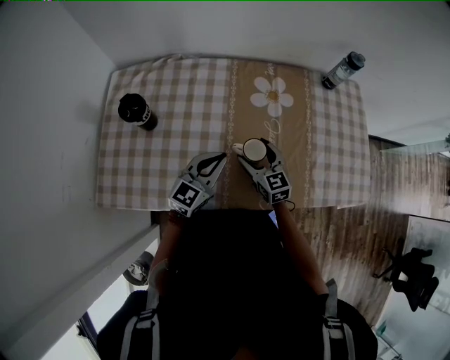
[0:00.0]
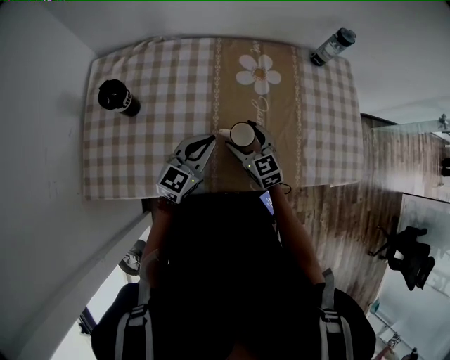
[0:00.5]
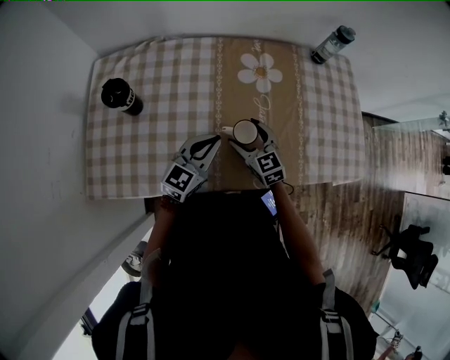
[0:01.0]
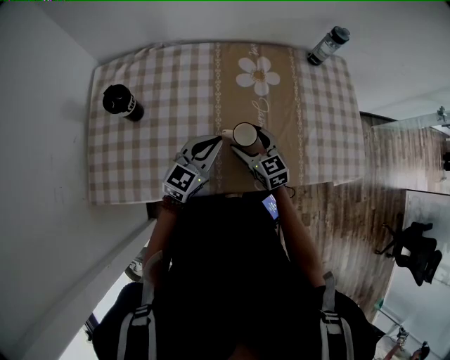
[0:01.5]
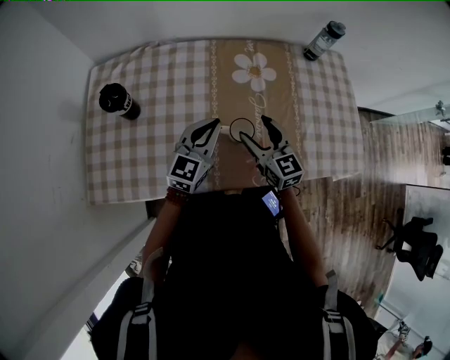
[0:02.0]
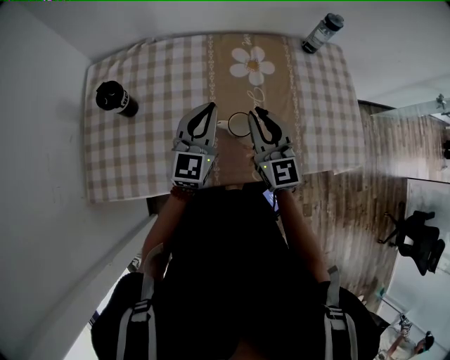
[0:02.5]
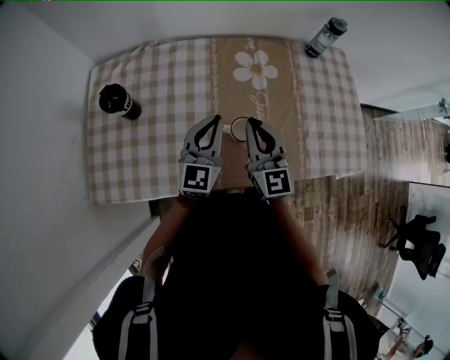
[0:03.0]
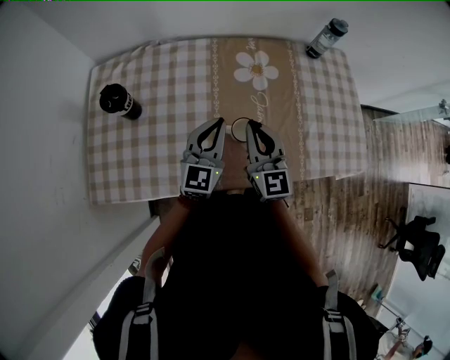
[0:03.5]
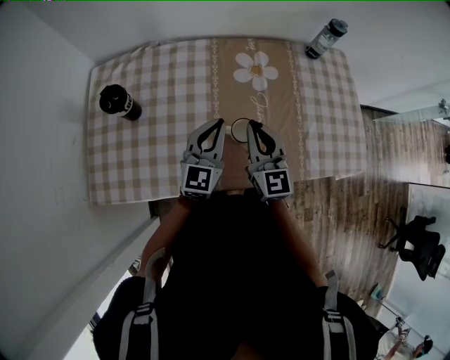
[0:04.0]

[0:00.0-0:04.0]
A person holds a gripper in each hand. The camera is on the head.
0:00.0 to 0:02.0: The right gripper is displaced upward by approximately 5 cm.
0:02.0 to 0:04.0: The right gripper travels upward by approximately 5 cm, and closes.

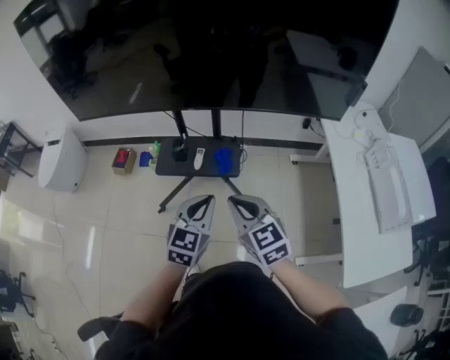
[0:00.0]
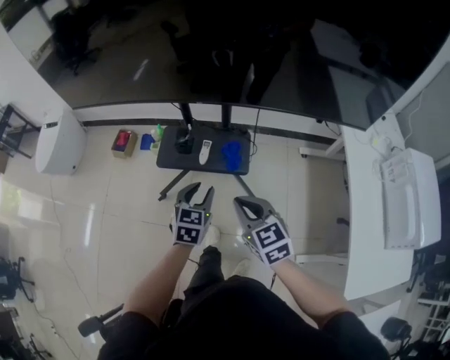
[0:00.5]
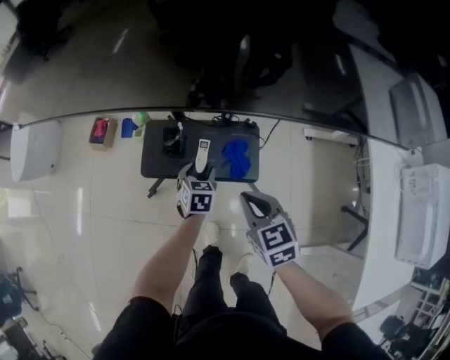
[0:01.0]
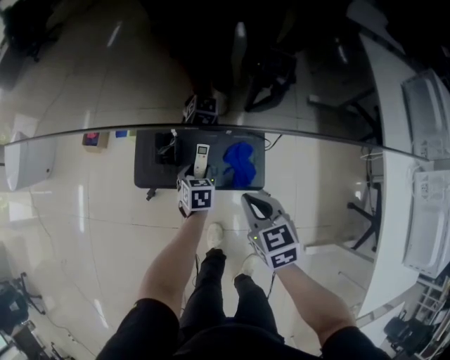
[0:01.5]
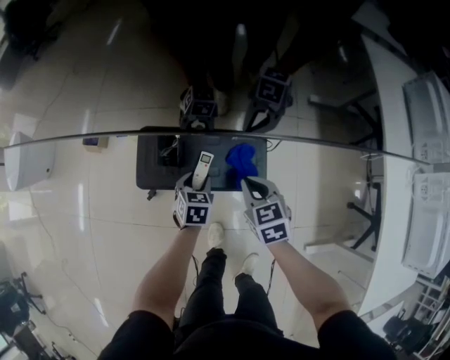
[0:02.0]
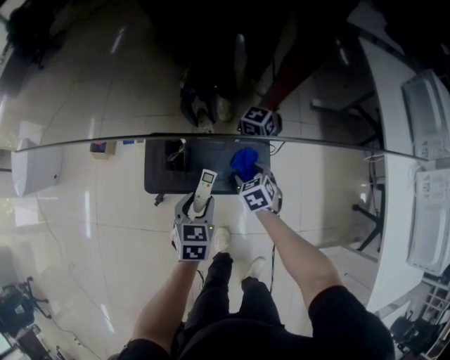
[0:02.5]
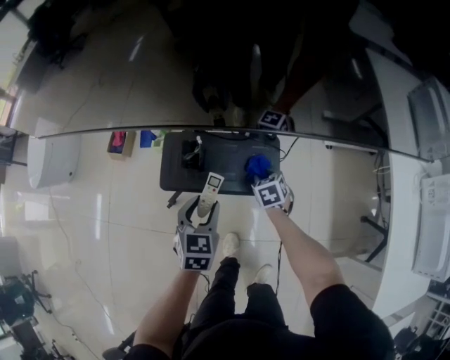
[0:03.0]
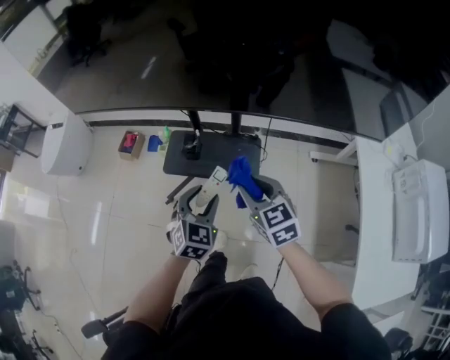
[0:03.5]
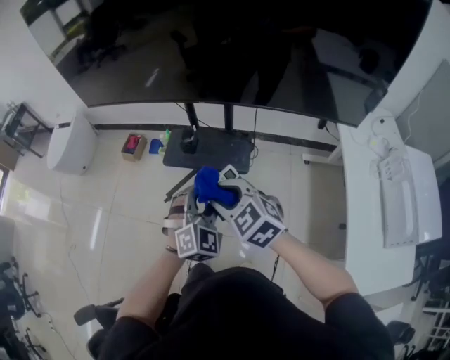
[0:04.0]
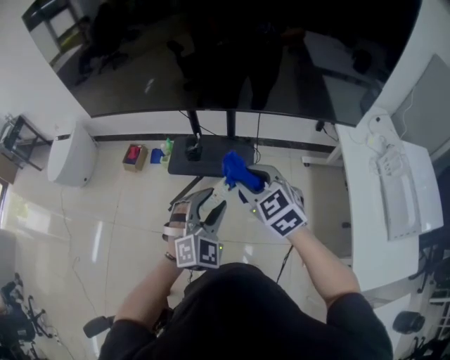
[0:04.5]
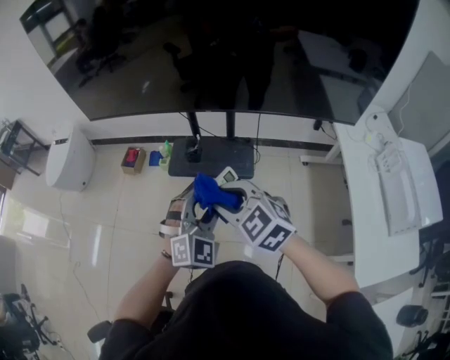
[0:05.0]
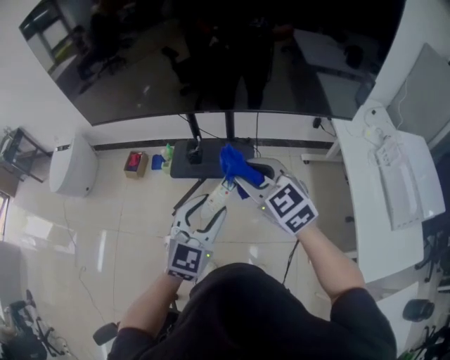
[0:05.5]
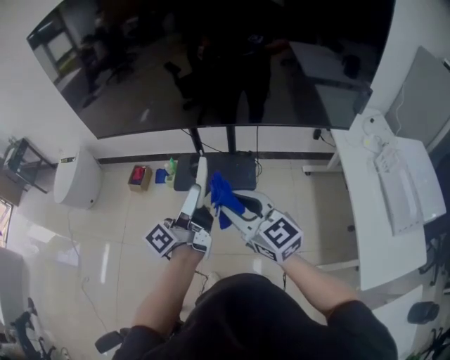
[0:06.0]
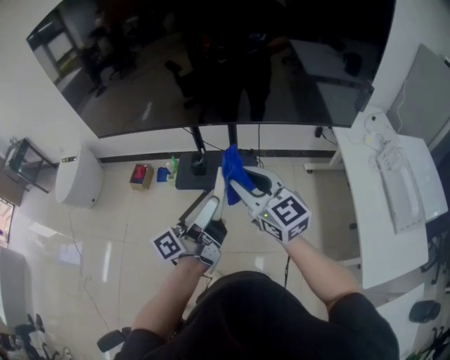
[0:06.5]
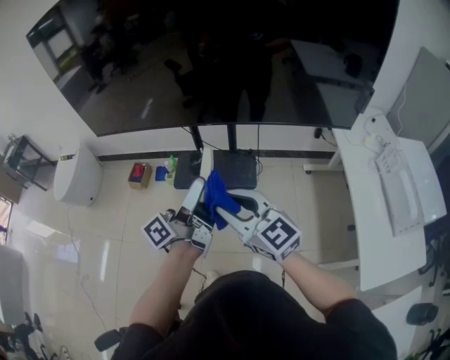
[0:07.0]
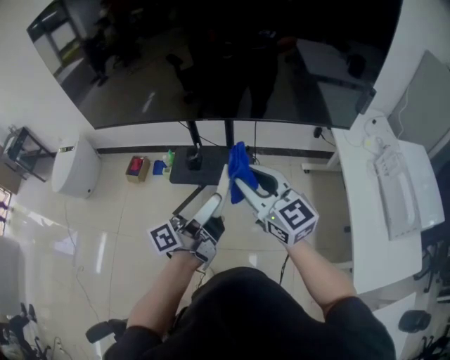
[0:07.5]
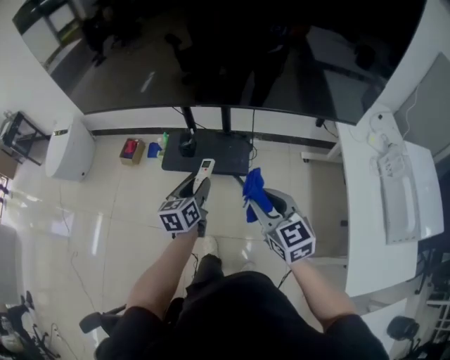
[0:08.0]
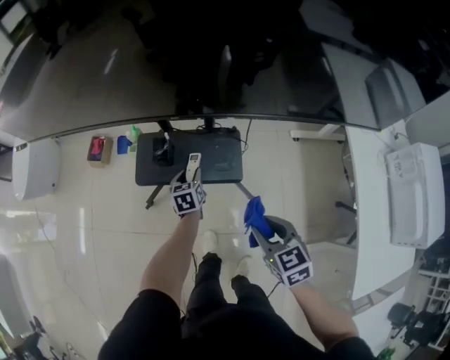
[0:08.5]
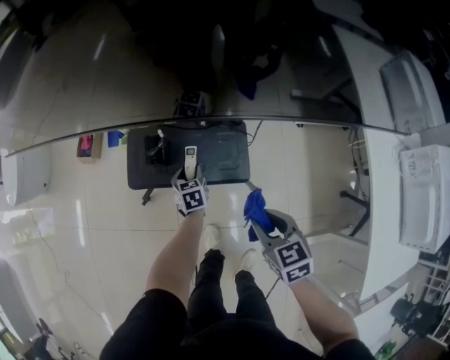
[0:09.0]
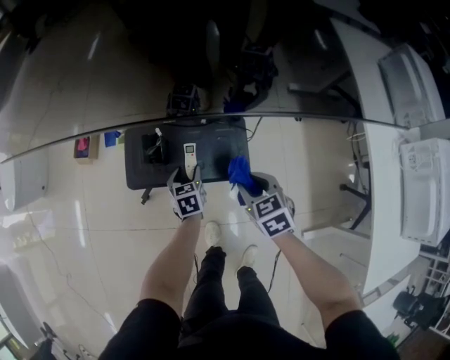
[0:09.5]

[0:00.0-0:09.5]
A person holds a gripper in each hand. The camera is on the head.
0:00.0 to 0:02.0: The left gripper heads downward and forward, covering approximately 50 cm, tips its fingers downward by roughly 30 degrees, and opens. Meanwhile the right gripper shifts some 40 cm forward and downward, and rotates approximately 30 degrees.
0:02.0 to 0:04.0: Both grippers move upward and backward, roughly 40 cm. The right gripper rotates some 40 degrees, and opens. The left gripper twists approximately 50 degrees clockwise, seen from behind.
0:04.0 to 0:05.5: The left gripper heads upward, covering roughly 5 cm, and changes its angle by some 30 degrees. The right gripper swings left and right, roughly 10 cm each way, with 2 reversals.
0:05.5 to 0:07.5: The left gripper moves about 5 cm to the left and comes back, and rotates around the line of its fingers by roughly 80 degrees, counterclockwise from behind; the right gripper reaches about 5 cm to the left, then returns, and swivels roughly 20 degrees.
0:07.5 to 0:09.5: Both grippers move downward and forward, approximately 50 cm. The right gripper points its fingers about 50 degrees further downward, while the left gripper angles its fingers downward, by roughly 70 degrees.

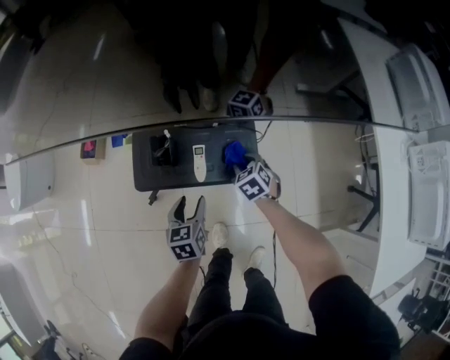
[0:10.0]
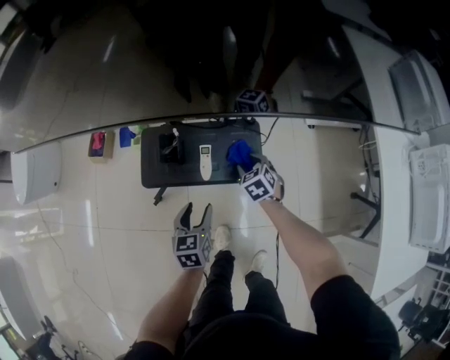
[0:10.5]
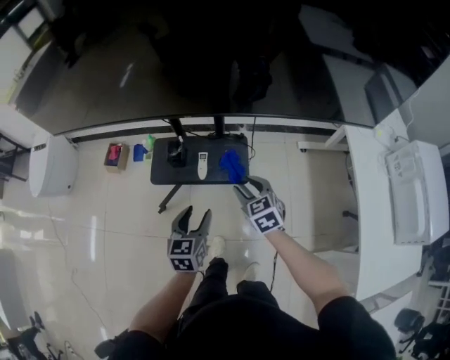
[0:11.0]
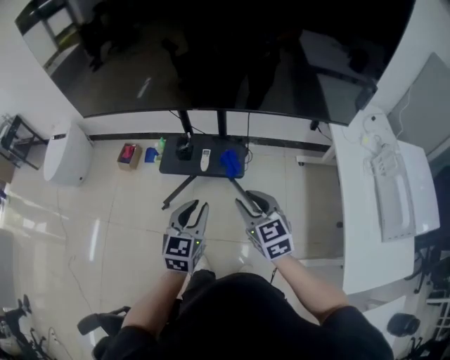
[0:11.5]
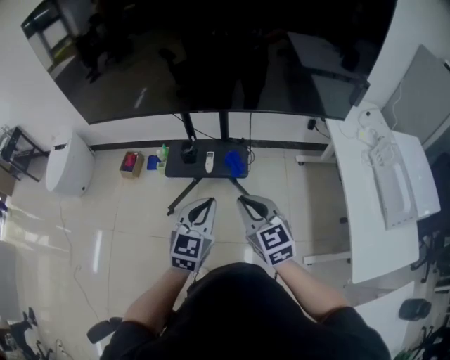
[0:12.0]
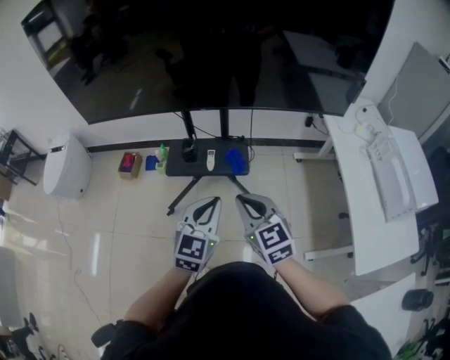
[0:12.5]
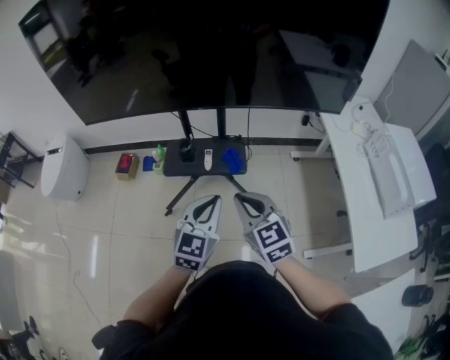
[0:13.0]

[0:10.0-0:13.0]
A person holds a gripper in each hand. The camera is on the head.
0:10.0 to 0:11.5: Both grippers move upward and backward, about 40 cm. The left gripper changes its angle by roughly 30 degrees, and closes its fingers. Meanwhile the right gripper angles its fingers upward, by roughly 40 degrees.
0:11.5 to 0:13.0: The left gripper travels upward by approximately 5 cm, and closes up, while the right gripper is displaced to the left, upward and backward by some 10 cm, and closes its fingers.

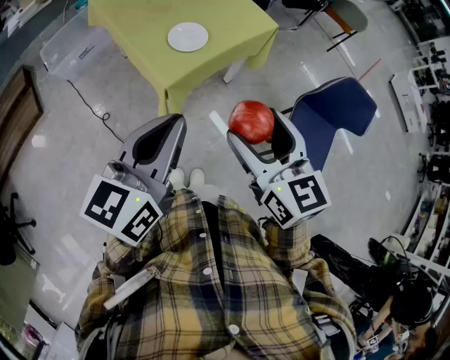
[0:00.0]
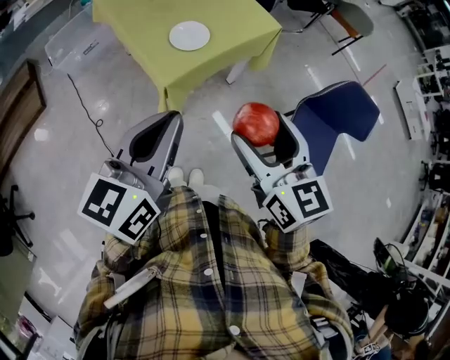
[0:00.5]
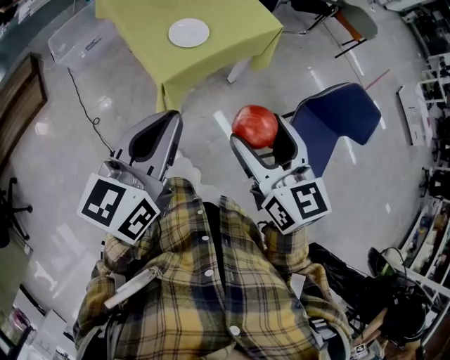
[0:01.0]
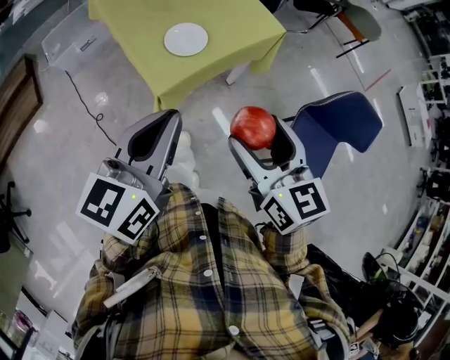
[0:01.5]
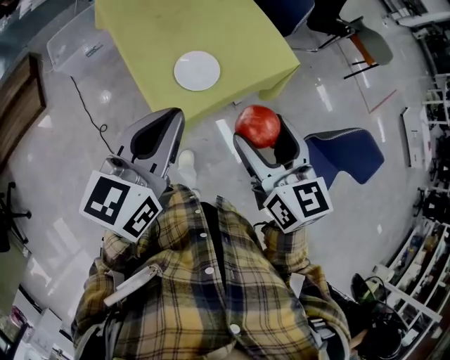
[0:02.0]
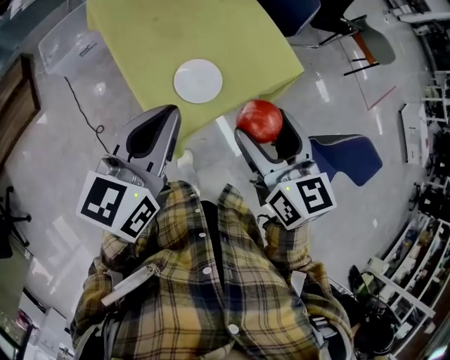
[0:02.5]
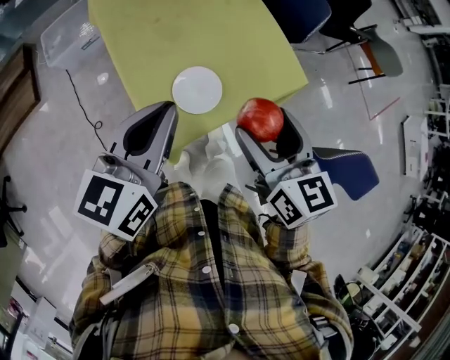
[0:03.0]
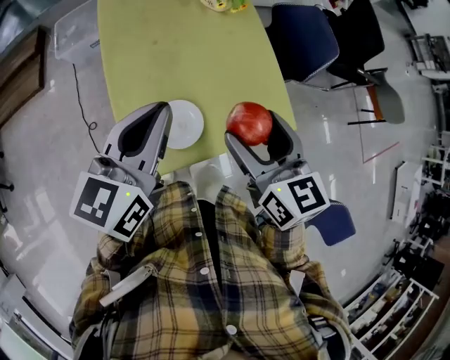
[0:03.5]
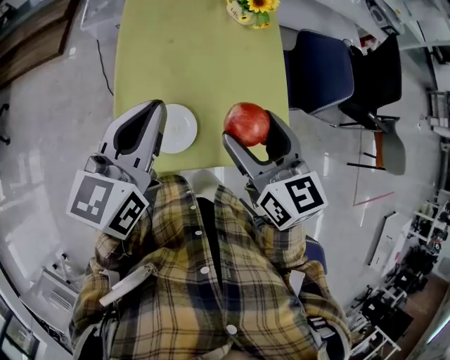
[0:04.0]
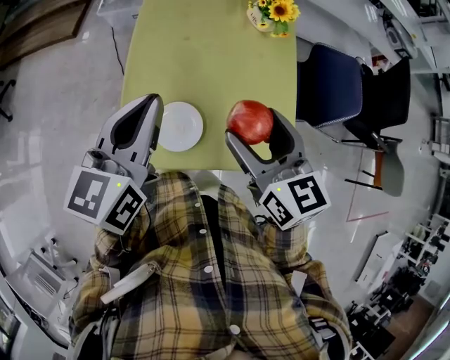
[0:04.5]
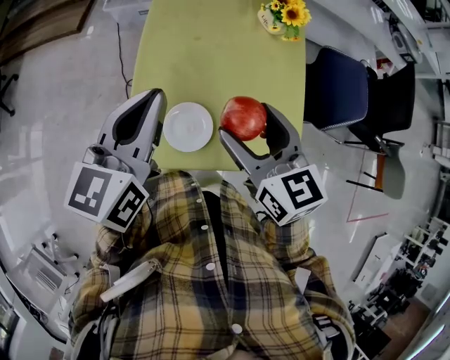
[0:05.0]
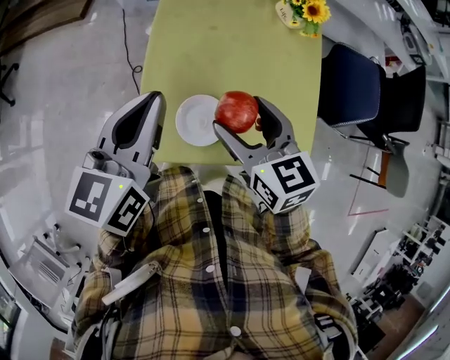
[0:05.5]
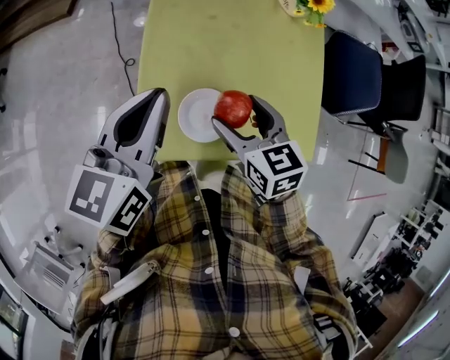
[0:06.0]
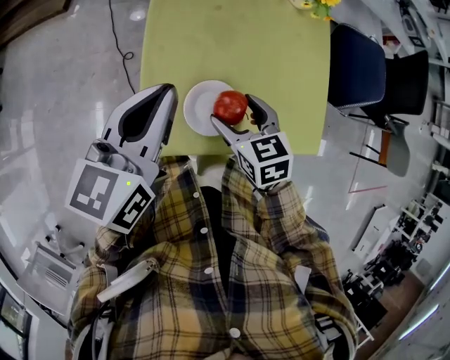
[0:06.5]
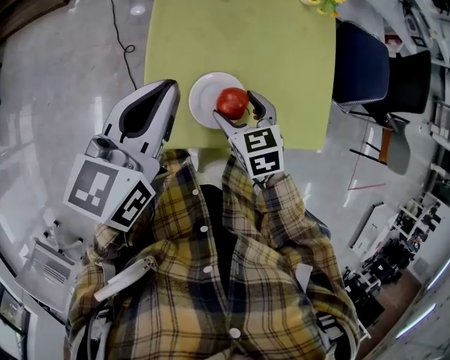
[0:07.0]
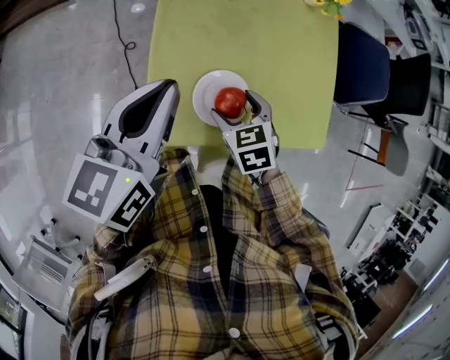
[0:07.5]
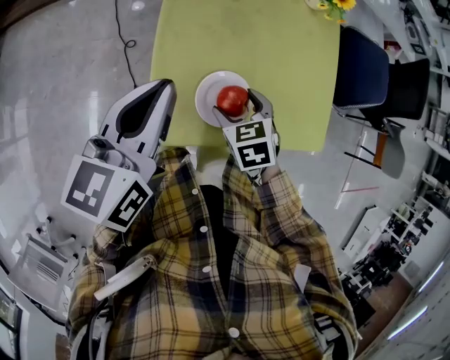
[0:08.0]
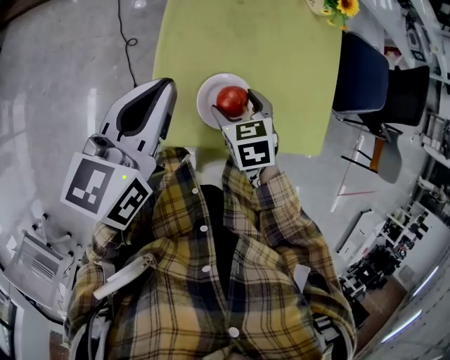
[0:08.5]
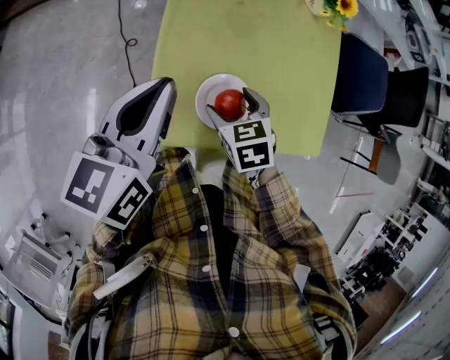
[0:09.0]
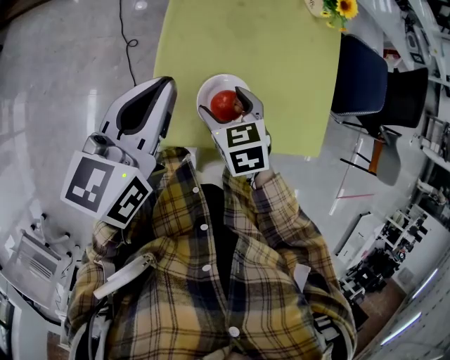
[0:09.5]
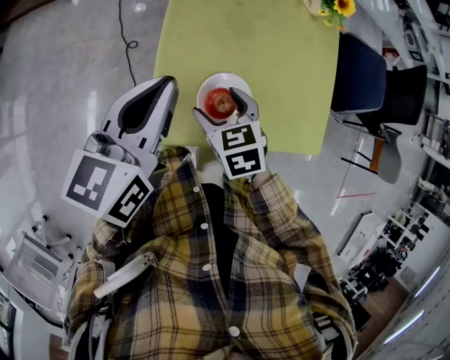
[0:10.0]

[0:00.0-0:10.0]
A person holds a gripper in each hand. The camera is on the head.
0:00.0 to 0:02.0: The two grippers go roughly 20 cm forward.
0:02.0 to 0:04.0: The left gripper moves some 25 cm, and swivels about 30 degrees. The right gripper shifts by some 30 cm, and rotates about 30 degrees.
0:04.0 to 0:06.0: The left gripper goes about 15 cm to the left and downward. The right gripper travels downward and to the left by about 20 cm, and turns by approximately 20 degrees.
0:06.0 to 0:08.0: The left gripper shifts by roughly 5 cm; the right gripper heads downward, covering roughly 10 cm, and swivels some 30 degrees.
0:08.0 to 0:10.0: The right gripper travels to the left by roughly 5 cm.
